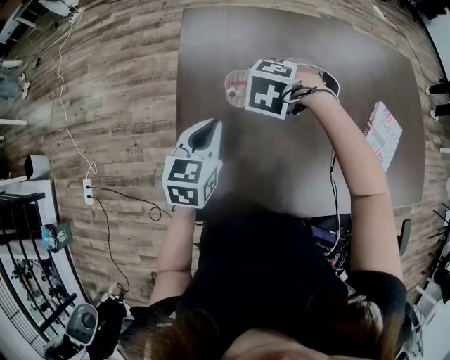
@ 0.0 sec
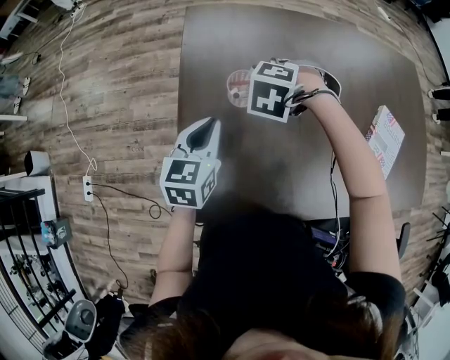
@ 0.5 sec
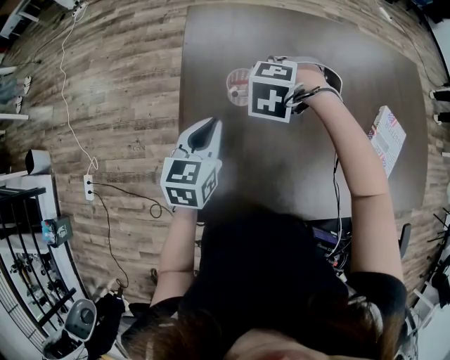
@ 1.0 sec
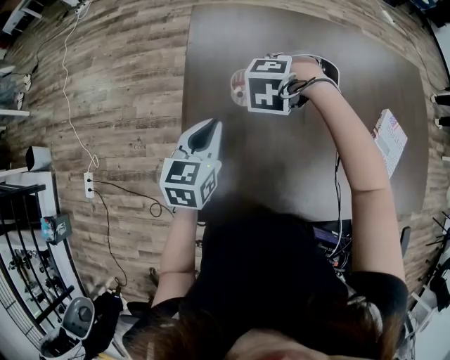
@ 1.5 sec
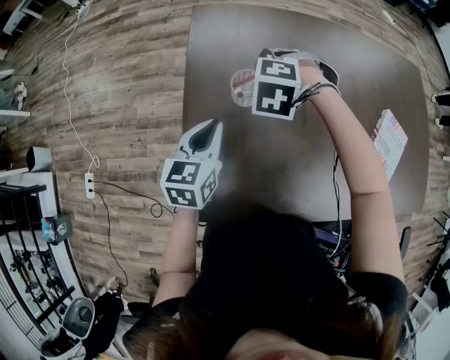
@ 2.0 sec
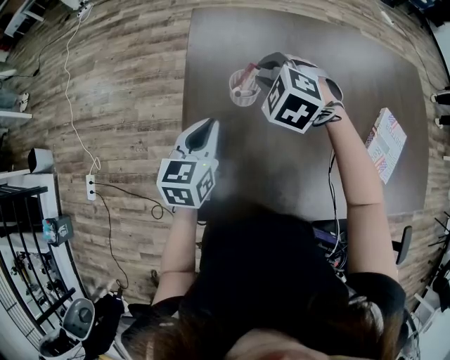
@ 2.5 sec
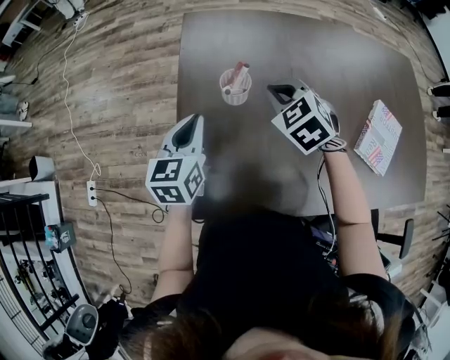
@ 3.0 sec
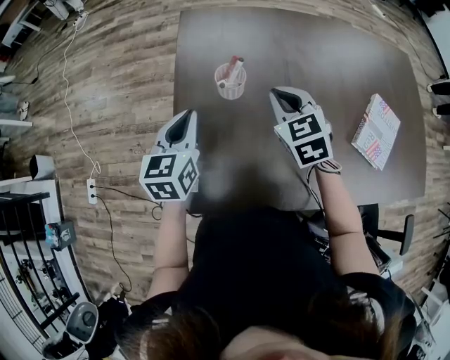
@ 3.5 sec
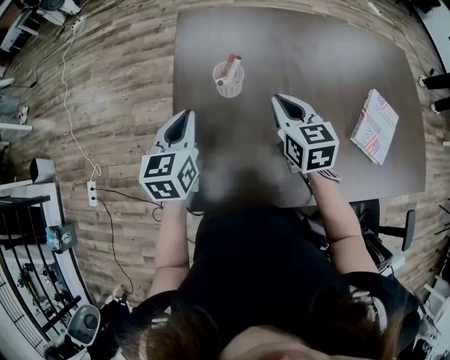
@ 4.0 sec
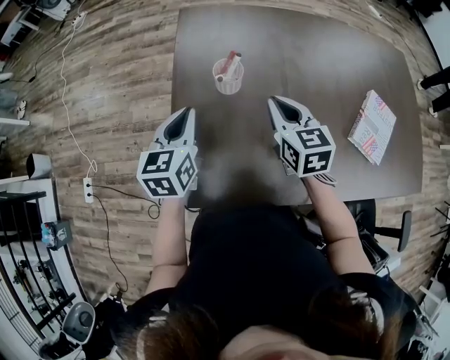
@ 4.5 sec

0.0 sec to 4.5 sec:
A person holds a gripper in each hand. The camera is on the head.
0.0 sec to 2.0 sec: The right gripper moves about 5 cm.
2.0 sec to 4.5 sec: The right gripper goes approximately 15 cm backward and to the right, rotates around the line of its fingers by roughly 70 degrees, clockwise from behind, and closes its fingers; the left gripper moves roughly 5 cm.

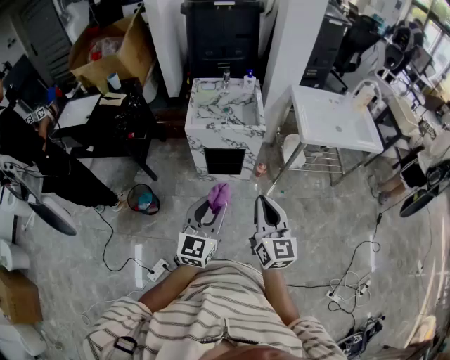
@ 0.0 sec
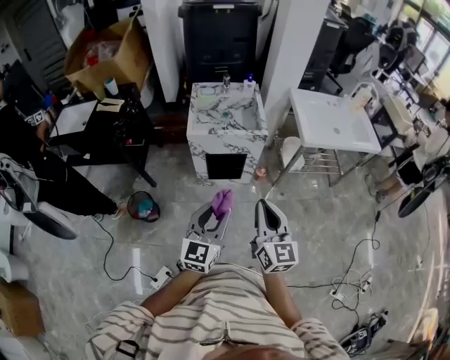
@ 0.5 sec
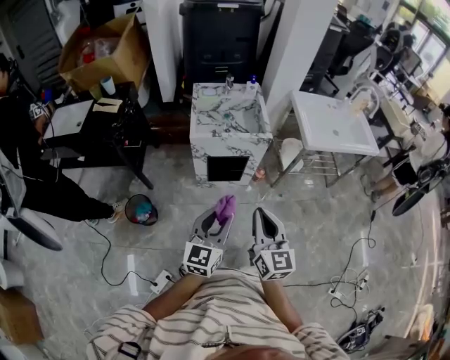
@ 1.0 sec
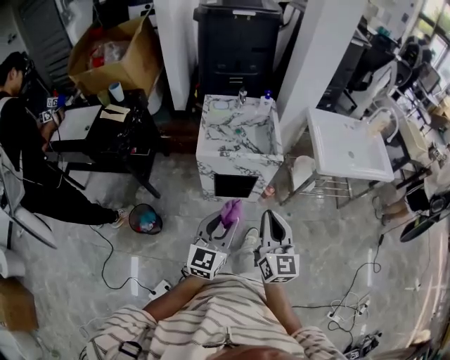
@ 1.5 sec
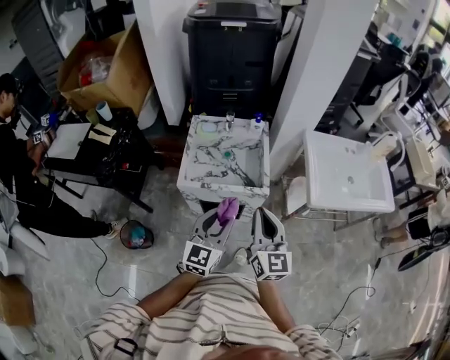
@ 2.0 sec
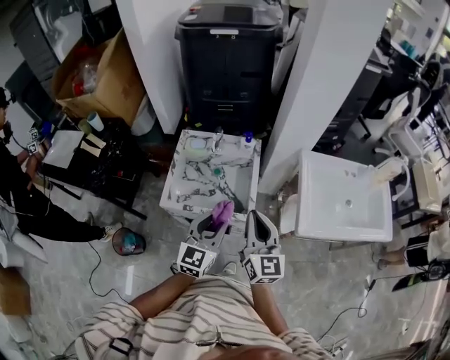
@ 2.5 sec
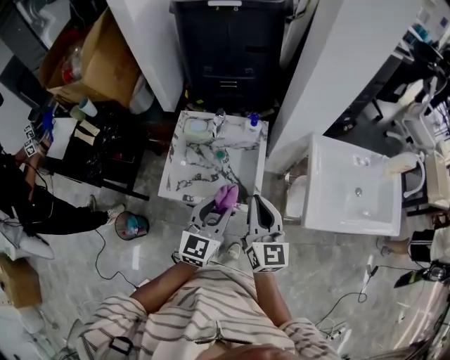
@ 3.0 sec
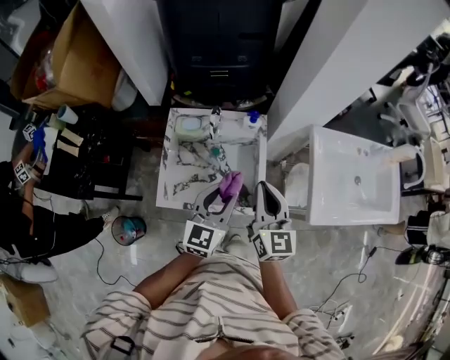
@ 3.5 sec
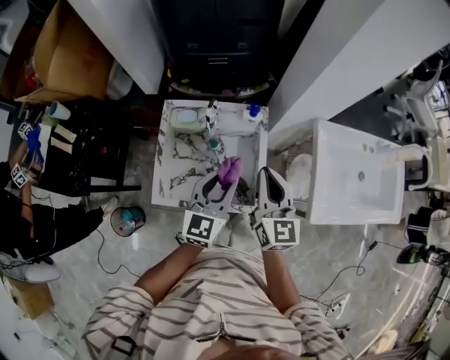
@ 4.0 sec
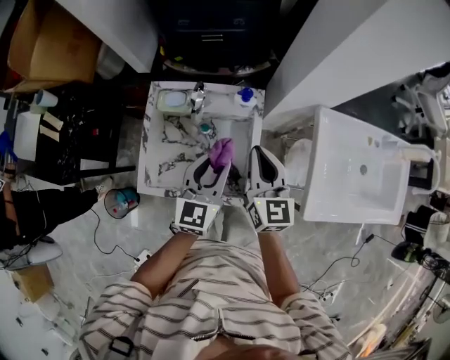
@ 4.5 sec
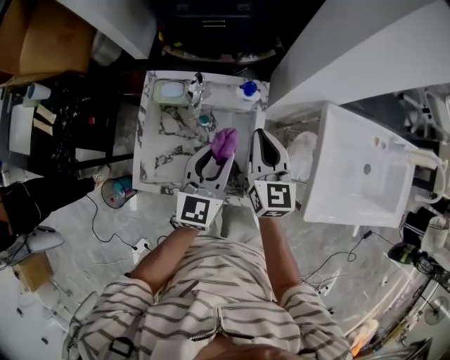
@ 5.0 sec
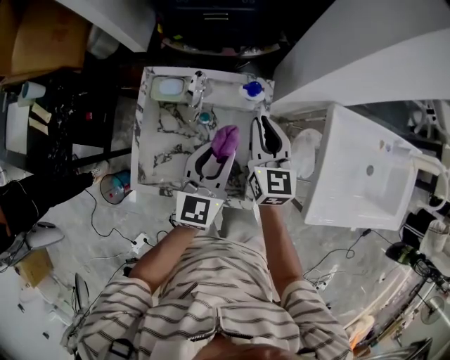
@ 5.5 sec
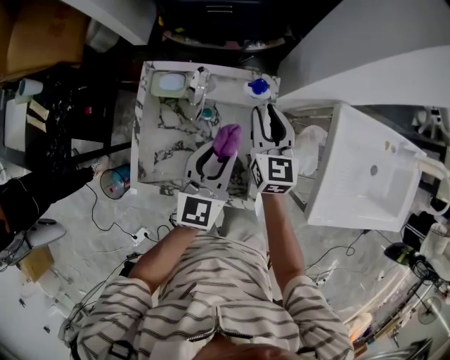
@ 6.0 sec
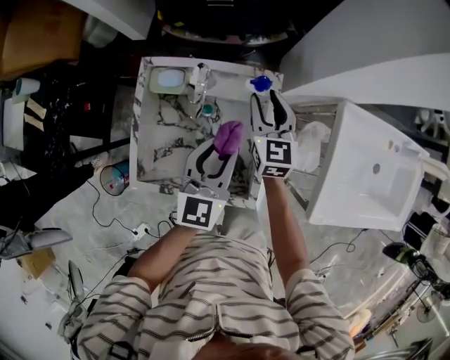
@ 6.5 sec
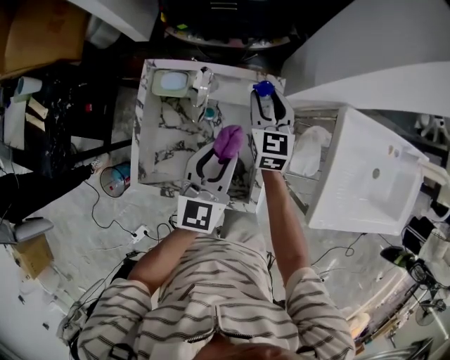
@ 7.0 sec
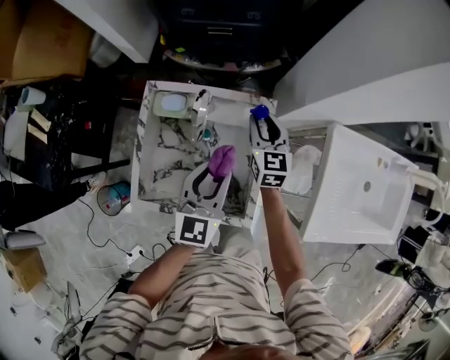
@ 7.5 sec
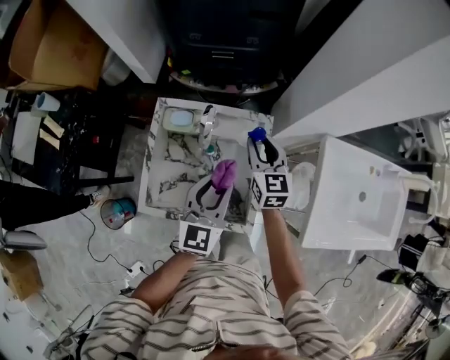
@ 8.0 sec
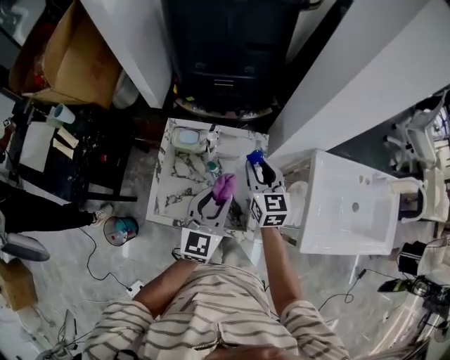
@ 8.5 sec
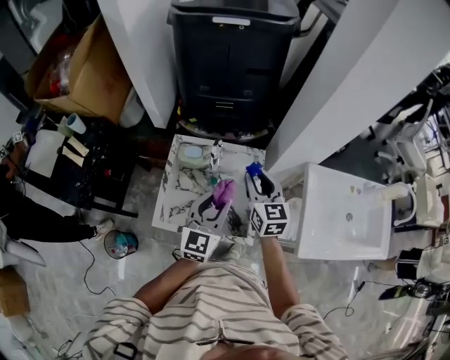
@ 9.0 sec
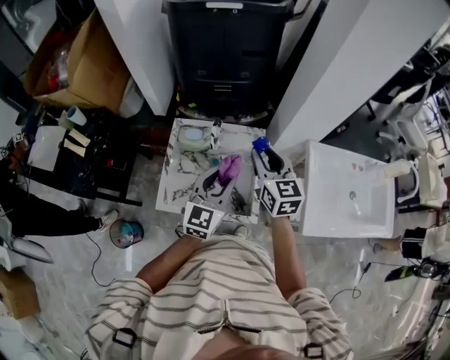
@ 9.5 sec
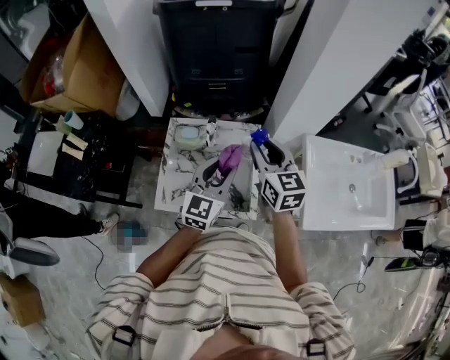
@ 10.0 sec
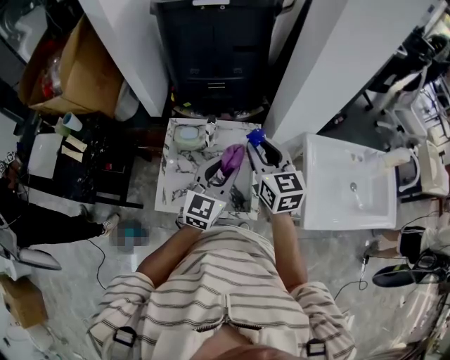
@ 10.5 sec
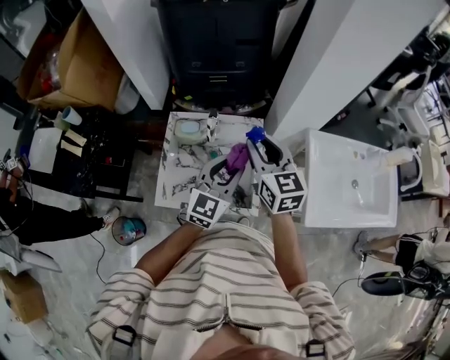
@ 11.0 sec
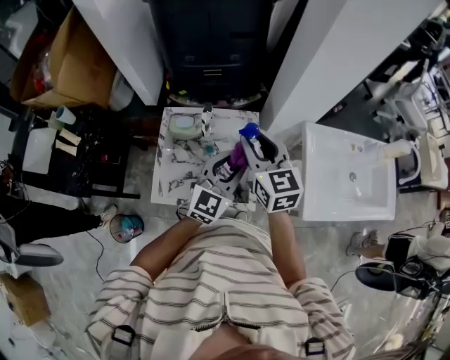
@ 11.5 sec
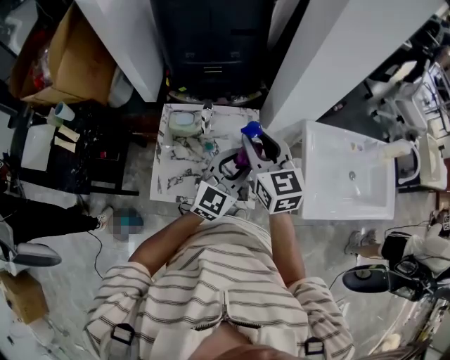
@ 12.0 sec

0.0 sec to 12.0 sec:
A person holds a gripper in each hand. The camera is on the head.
0.0 sec to 2.0 sec: Both grippers move forward, about 30 cm.
2.0 sec to 4.0 sec: The two grippers go roughly 30 cm forward.
4.0 sec to 6.0 sec: The left gripper travels forward and downward by roughly 10 cm. Meanwhile the right gripper moves forward and downward, approximately 20 cm.
6.0 sec to 8.0 sec: The left gripper moves roughly 5 cm.
8.0 sec to 10.0 sec: The left gripper shifts about 10 cm upward. Meanwhile the right gripper travels upward and backward by approximately 20 cm.
10.0 sec to 12.0 sec: The left gripper heads to the right, covering about 5 cm.

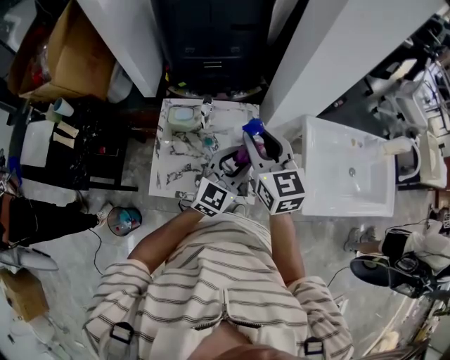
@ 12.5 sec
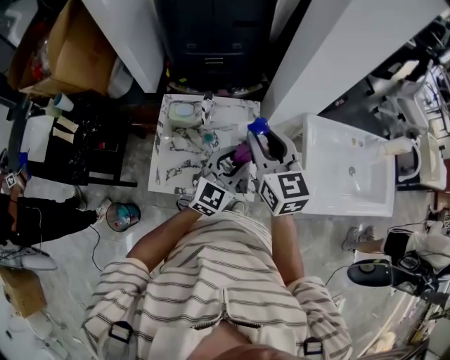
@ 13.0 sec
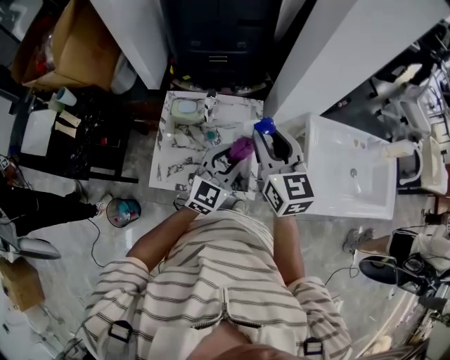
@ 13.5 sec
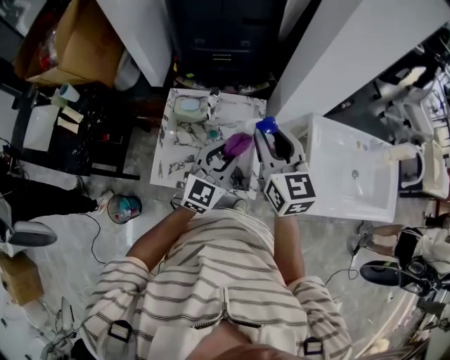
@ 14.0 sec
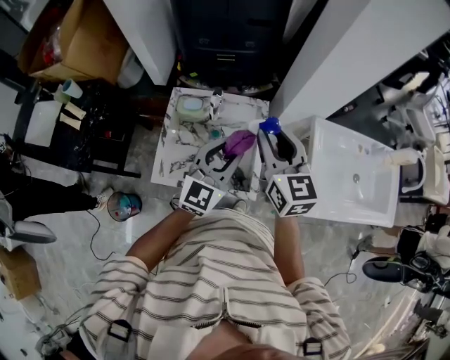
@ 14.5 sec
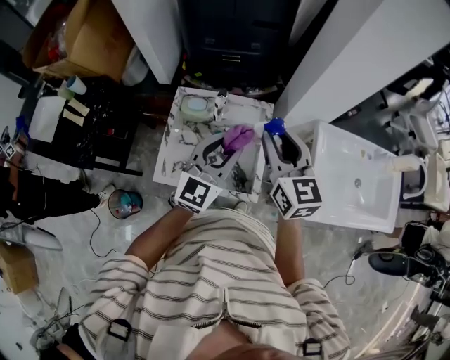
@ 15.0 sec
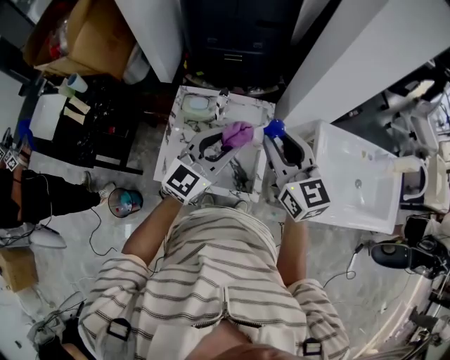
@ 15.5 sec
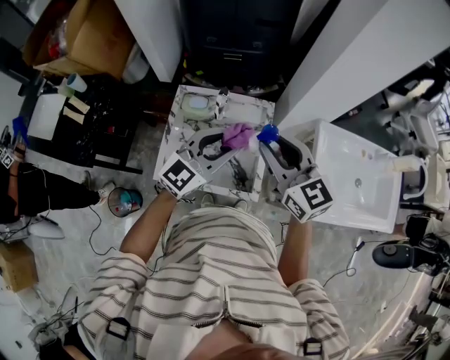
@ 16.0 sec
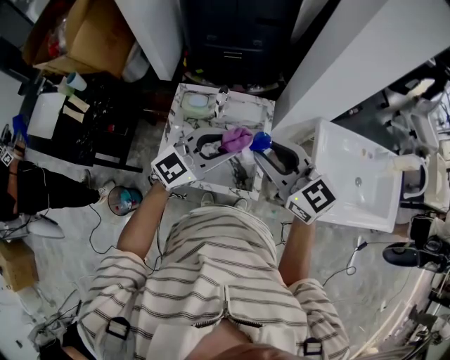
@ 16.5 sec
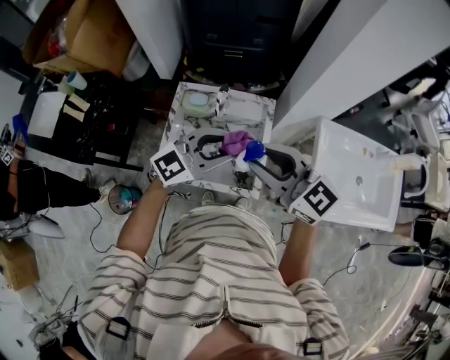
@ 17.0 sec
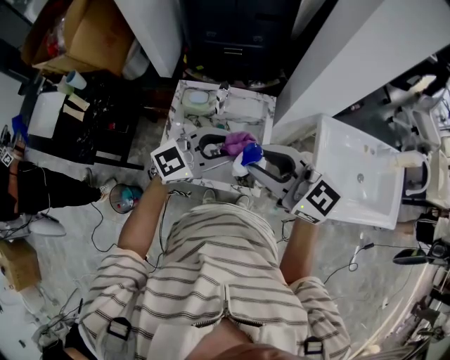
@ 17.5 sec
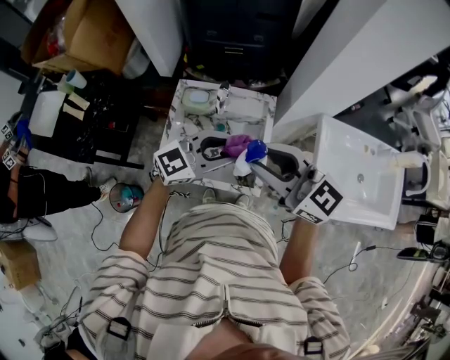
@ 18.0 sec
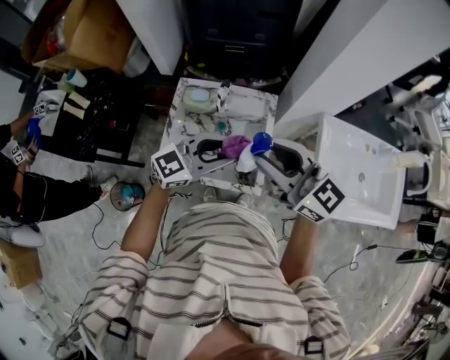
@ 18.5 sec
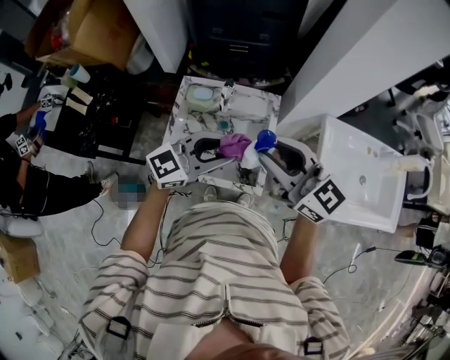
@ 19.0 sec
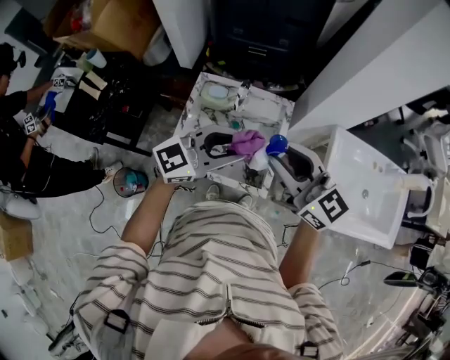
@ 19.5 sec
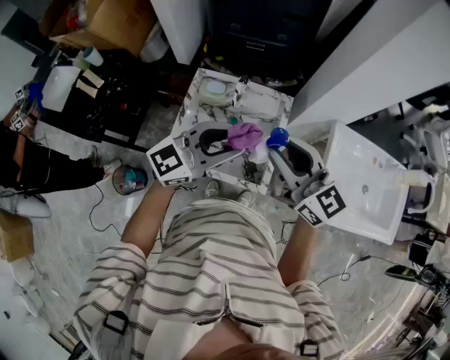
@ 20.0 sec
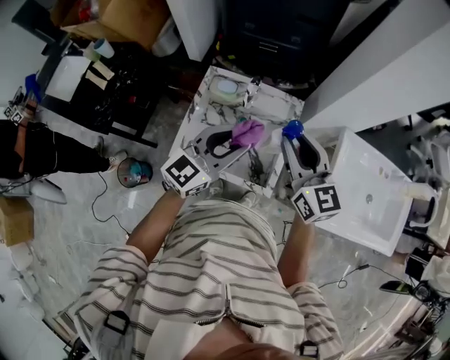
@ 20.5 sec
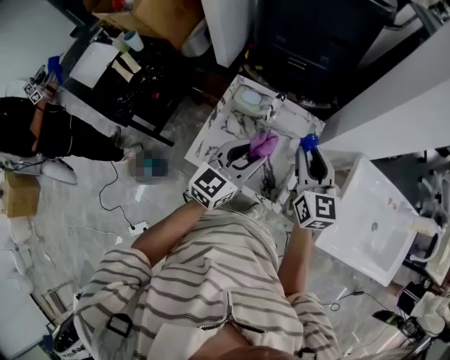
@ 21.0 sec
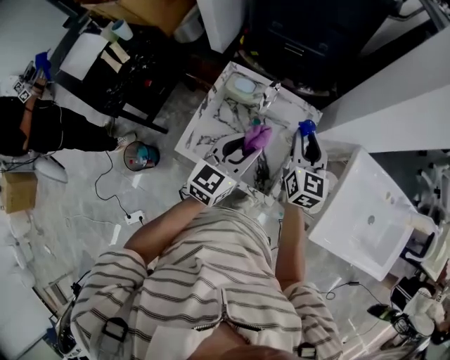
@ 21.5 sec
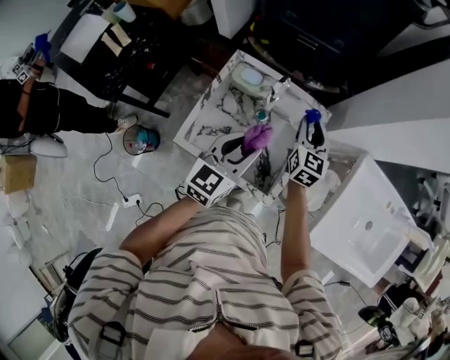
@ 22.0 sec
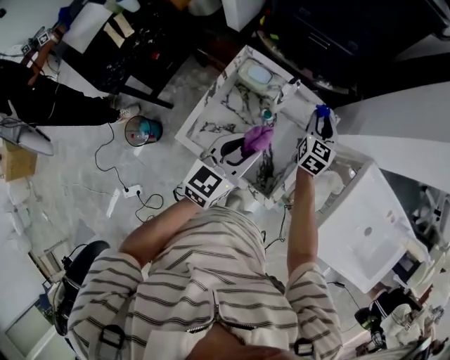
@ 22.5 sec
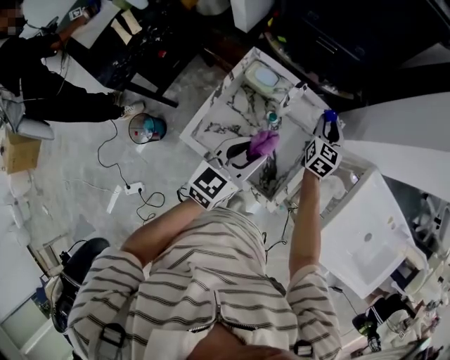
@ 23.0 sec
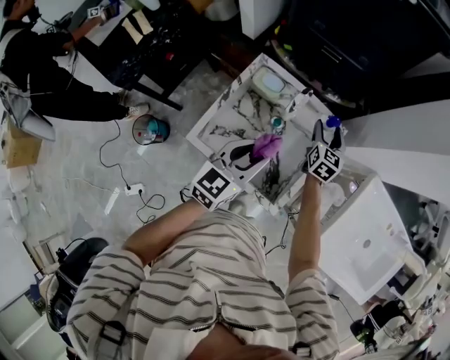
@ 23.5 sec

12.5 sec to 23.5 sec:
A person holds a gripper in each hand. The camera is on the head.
12.5 sec to 14.5 sec: The left gripper goes roughly 5 cm to the left.
14.5 sec to 16.0 sec: The grippers make only small movements.
16.0 sec to 18.0 sec: The right gripper shifts by about 5 cm, and rotates some 20 degrees, while the left gripper rotates about 20 degrees.
18.0 sec to 20.0 sec: The left gripper heads upward, covering some 5 cm.
20.0 sec to 21.5 sec: The right gripper is displaced downward and forward by about 20 cm, and swivels approximately 30 degrees; the left gripper shifts some 10 cm downward, and turns by roughly 40 degrees.
21.5 sec to 23.5 sec: The left gripper changes place by some 5 cm, while the right gripper travels downward and forward by about 20 cm, and opens.
